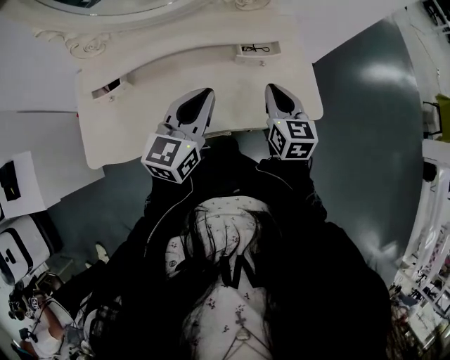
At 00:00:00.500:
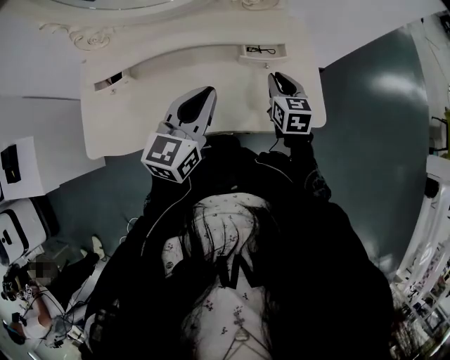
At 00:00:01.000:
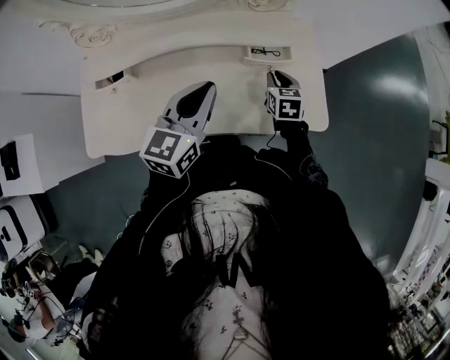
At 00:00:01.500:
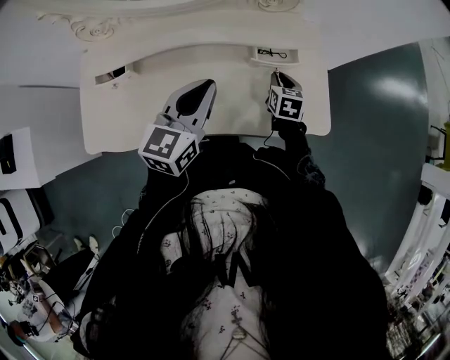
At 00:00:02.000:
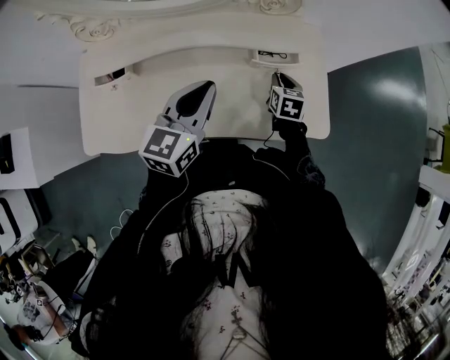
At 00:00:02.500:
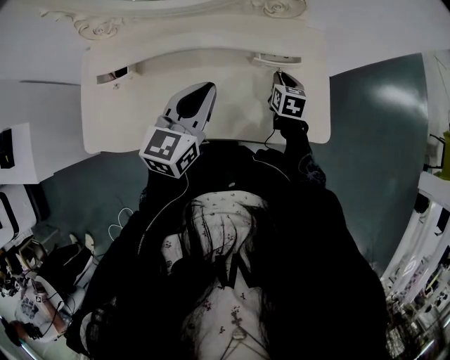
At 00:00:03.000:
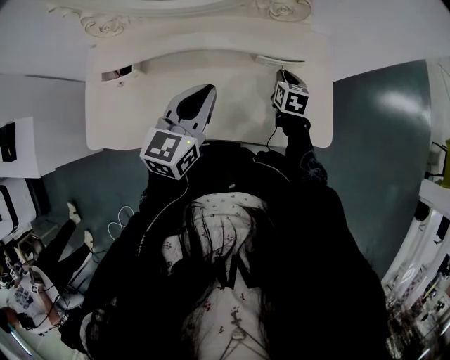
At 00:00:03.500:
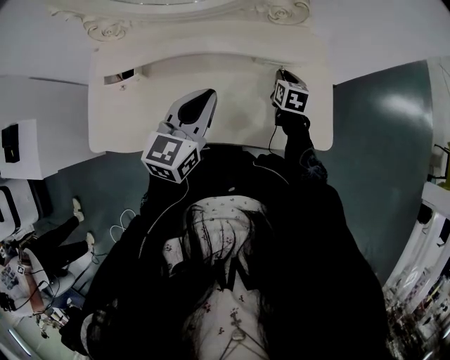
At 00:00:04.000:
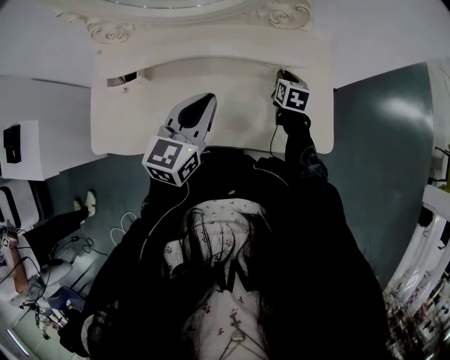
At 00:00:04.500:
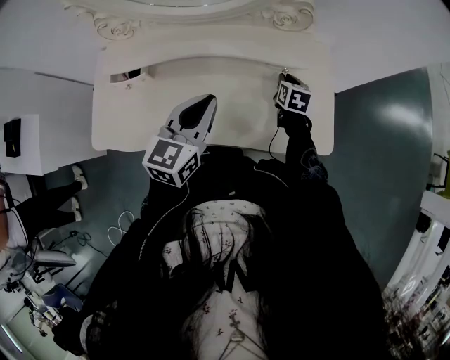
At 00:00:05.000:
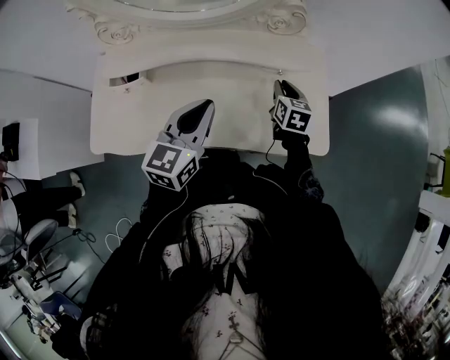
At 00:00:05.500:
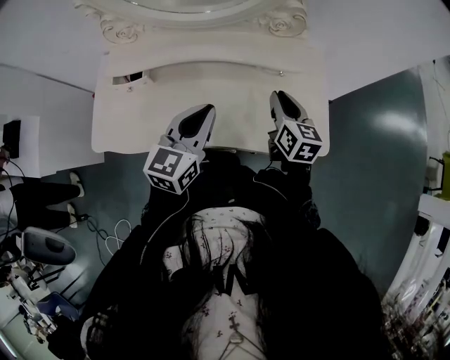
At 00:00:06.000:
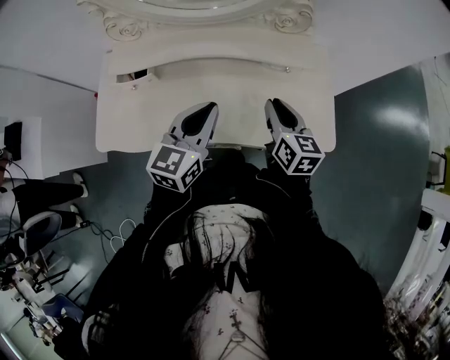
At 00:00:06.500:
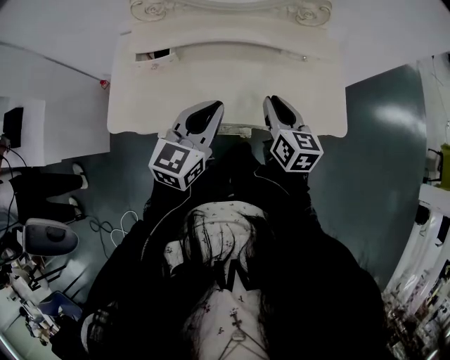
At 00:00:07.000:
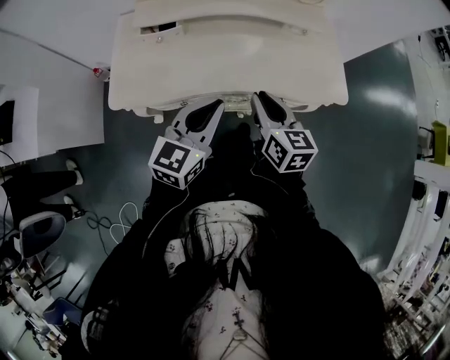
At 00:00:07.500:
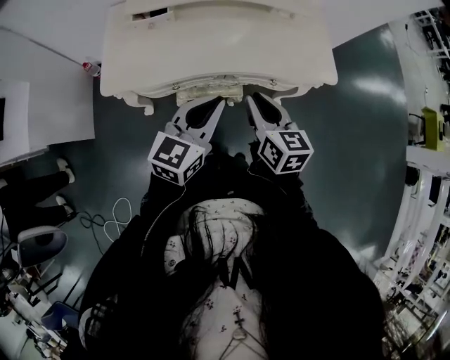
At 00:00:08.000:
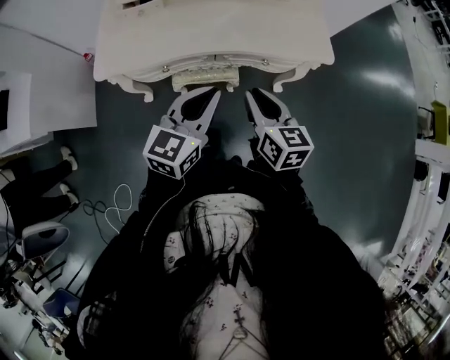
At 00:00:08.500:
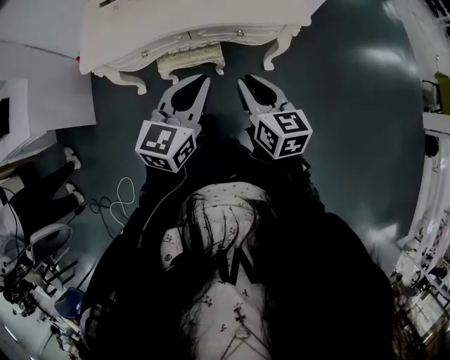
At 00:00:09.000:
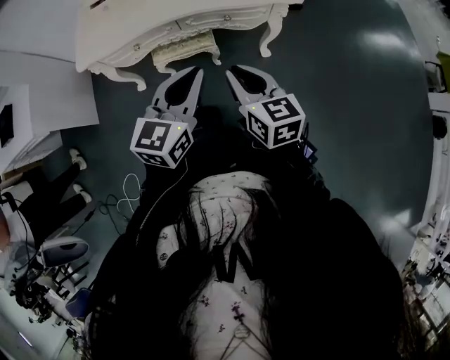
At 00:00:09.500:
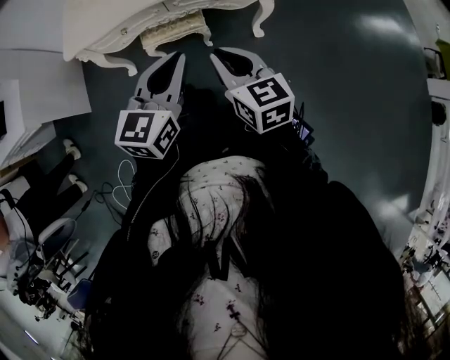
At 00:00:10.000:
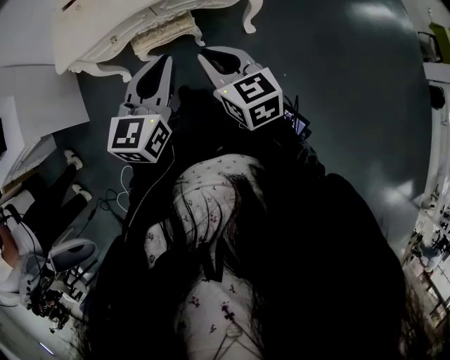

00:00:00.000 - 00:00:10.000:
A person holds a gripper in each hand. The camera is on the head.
00:00:00.000 - 00:00:02.000: The left gripper changes place by approximately 5 cm. The right gripper heads downward and forward, covering some 20 cm, and rotates about 20 degrees.
00:00:02.000 - 00:00:04.000: The right gripper is displaced forward by about 5 cm.
00:00:04.000 - 00:00:06.000: The right gripper moves upward, backward and to the left, some 25 cm, and changes its angle by roughly 30 degrees.
00:00:06.000 - 00:00:08.000: The grippers both shift backward by some 30 cm.
00:00:08.000 - 00:00:10.000: Both grippers move backward and to the right, roughly 15 cm.

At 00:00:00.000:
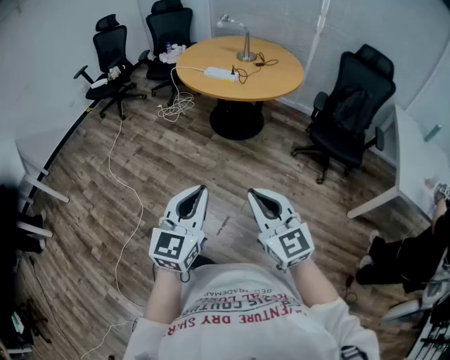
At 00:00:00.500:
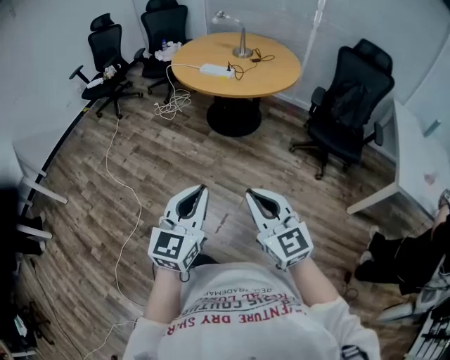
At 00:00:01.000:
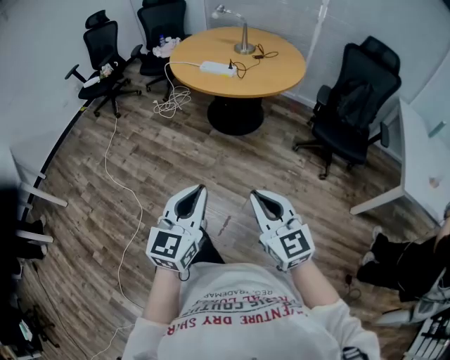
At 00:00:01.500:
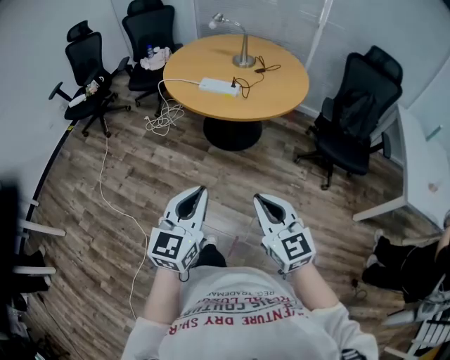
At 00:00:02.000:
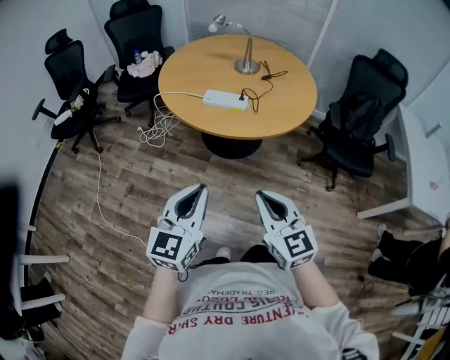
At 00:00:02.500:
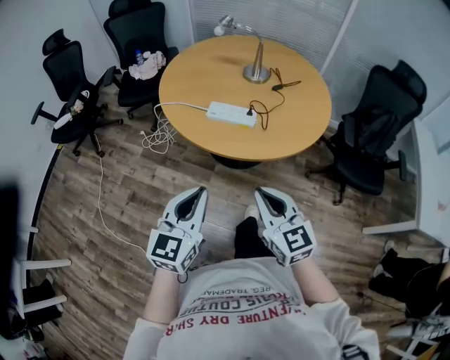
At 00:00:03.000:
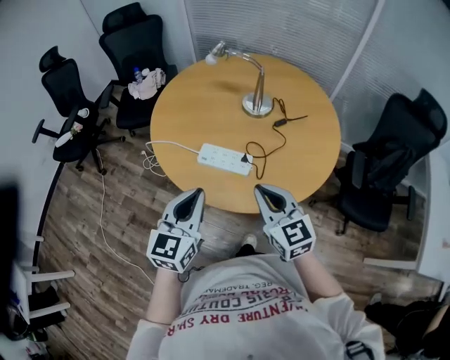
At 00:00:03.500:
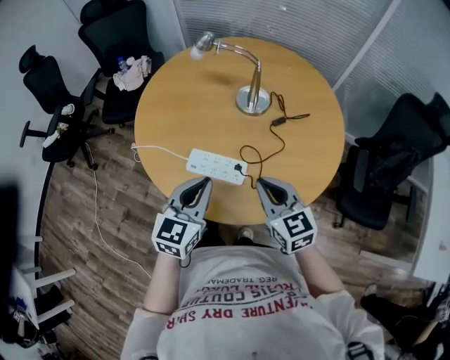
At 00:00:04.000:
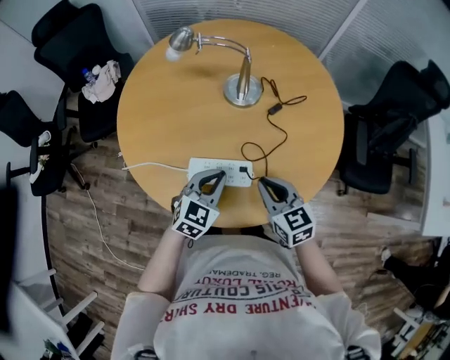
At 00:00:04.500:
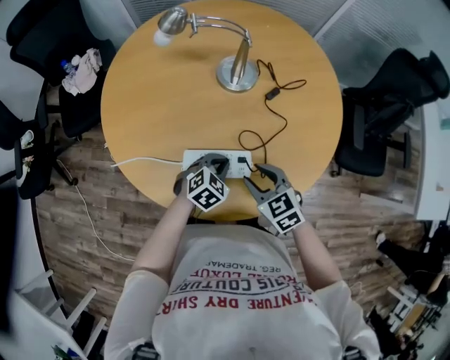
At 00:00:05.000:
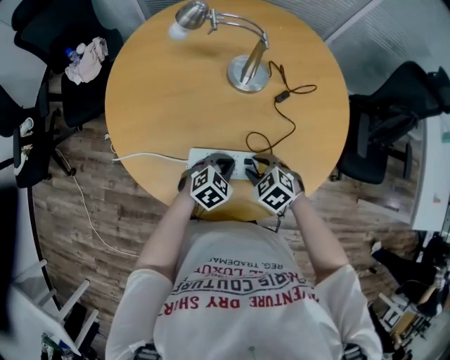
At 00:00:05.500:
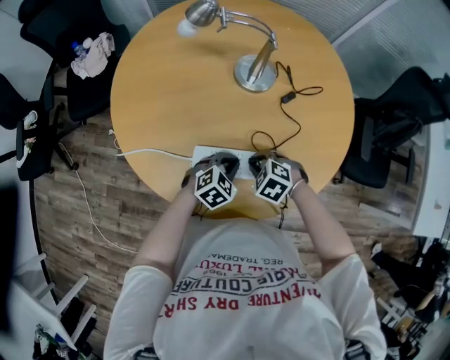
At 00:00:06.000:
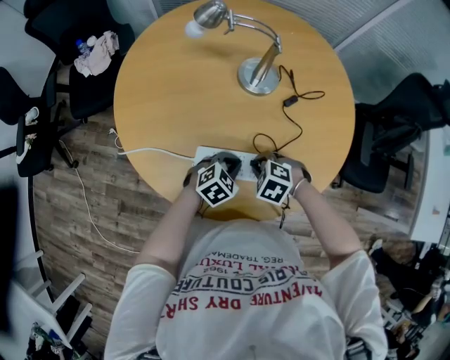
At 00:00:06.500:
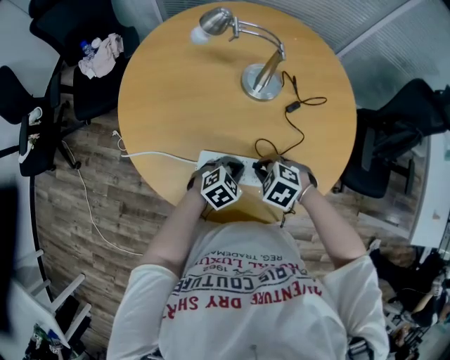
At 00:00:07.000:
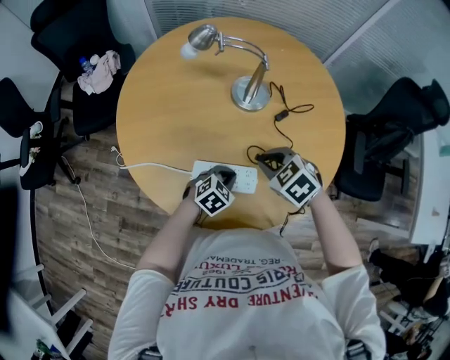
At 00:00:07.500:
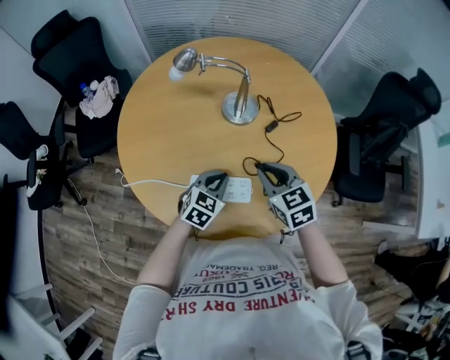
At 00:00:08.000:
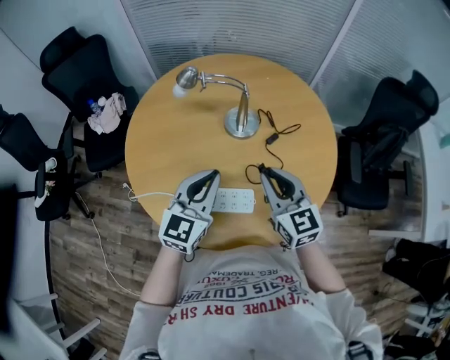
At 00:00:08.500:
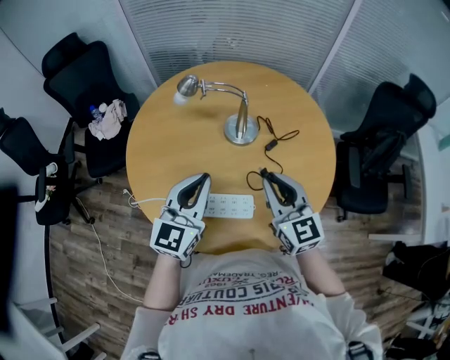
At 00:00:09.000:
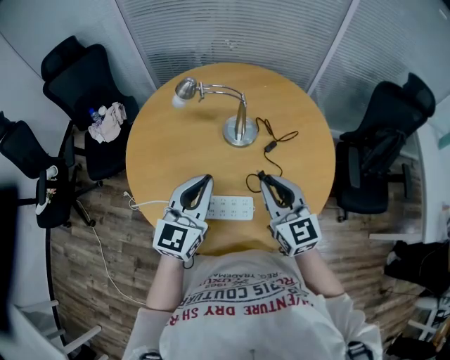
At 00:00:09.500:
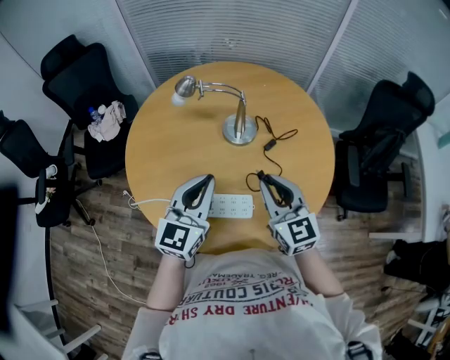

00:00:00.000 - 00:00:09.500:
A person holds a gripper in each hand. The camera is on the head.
00:00:00.000 - 00:00:02.000: The pair of grippers is taken forward, approximately 40 cm. The right gripper changes its angle by approximately 20 degrees.
00:00:02.000 - 00:00:04.000: Both grippers are carried forward, some 50 cm. The right gripper turns by some 20 degrees. The left gripper swivels roughly 40 degrees.
00:00:04.000 - 00:00:05.500: The grippers both shift downward by roughly 15 cm. The left gripper rotates roughly 20 degrees, while the right gripper tips its fingers downward by roughly 40 degrees.
00:00:05.500 - 00:00:07.500: The right gripper goes some 15 cm upward, and tilts its fingers about 40 degrees upward. Meanwhile the left gripper heads upward, covering approximately 10 cm.
00:00:07.500 - 00:00:09.500: The left gripper goes some 20 cm upward, and tips its fingers upward by some 30 degrees. Meanwhile the right gripper moves upward, some 10 cm, and turns by approximately 30 degrees.

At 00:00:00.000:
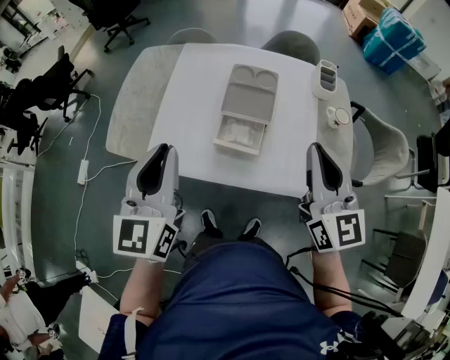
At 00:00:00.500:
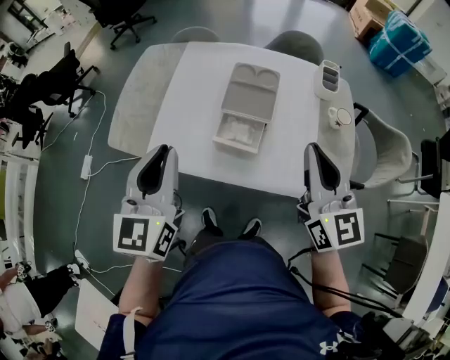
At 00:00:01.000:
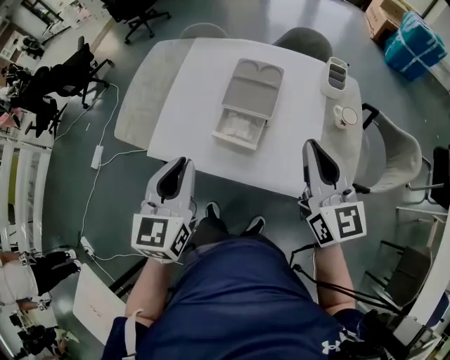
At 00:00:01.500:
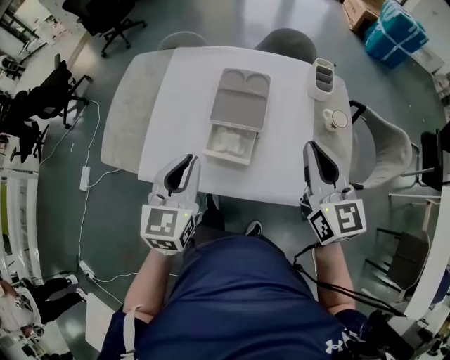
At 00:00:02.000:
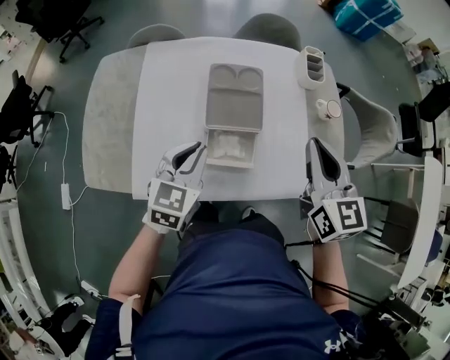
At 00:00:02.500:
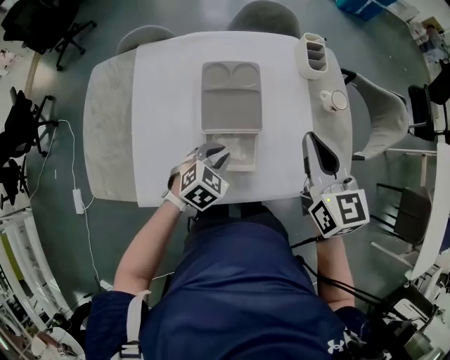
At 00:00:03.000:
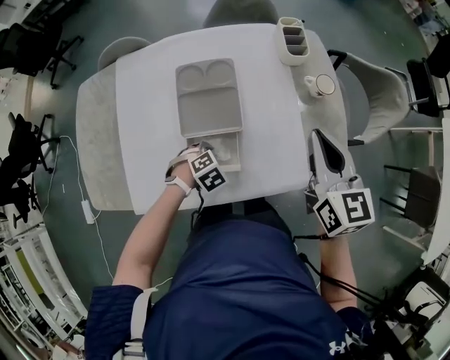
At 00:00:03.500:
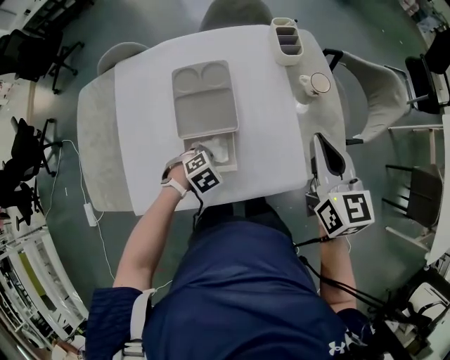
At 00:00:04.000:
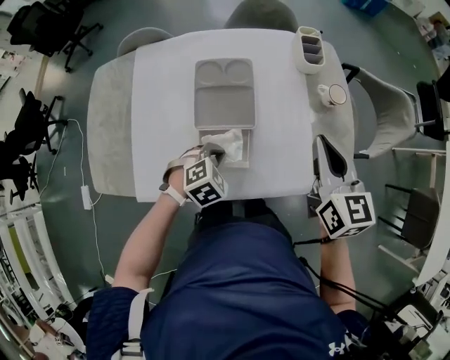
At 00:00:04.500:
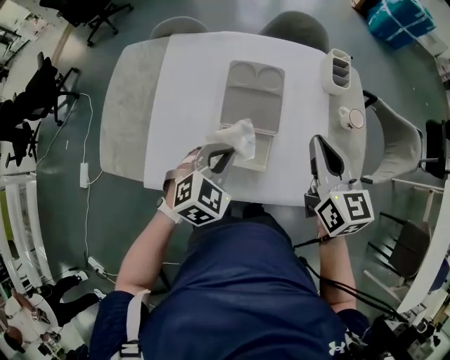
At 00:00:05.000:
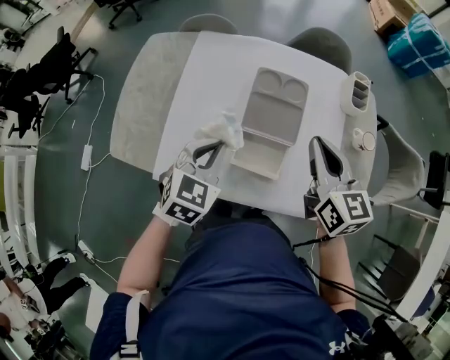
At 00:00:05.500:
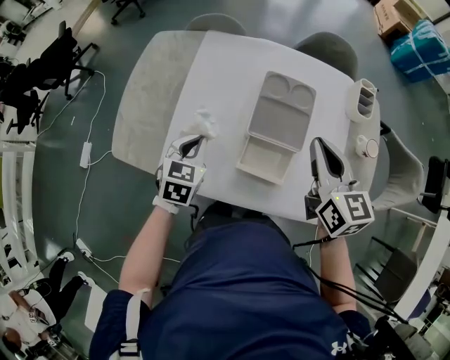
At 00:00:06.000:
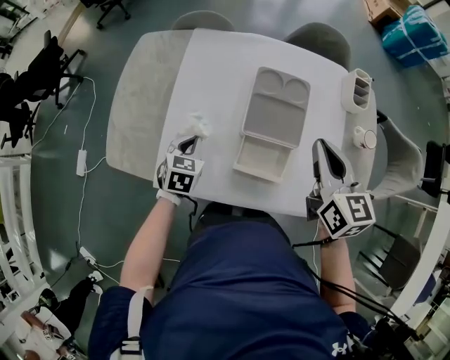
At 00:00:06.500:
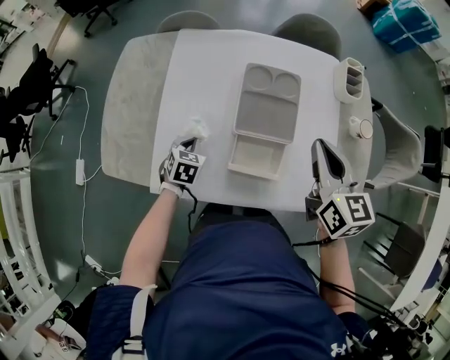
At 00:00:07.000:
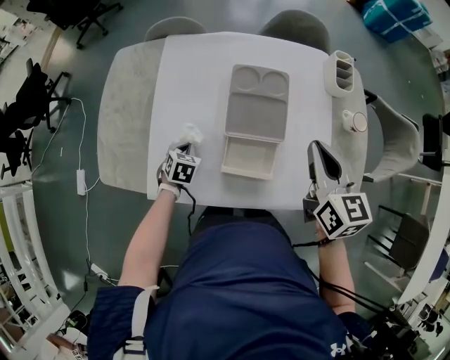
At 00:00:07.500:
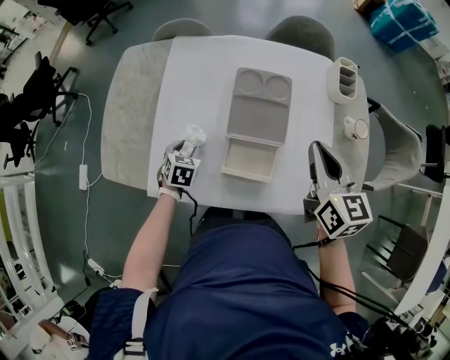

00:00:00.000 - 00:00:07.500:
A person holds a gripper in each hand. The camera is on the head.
00:00:00.000 - 00:00:02.000: The right gripper shifts by about 10 cm. Meanwhile the left gripper heads downward, covering some 15 cm, and swivels about 40 degrees.
00:00:02.000 - 00:00:04.000: The right gripper changes place by about 10 cm. The left gripper shifts roughly 15 cm downward, and points its fingers some 40 degrees further downward.
00:00:04.000 - 00:00:05.500: The left gripper changes place by roughly 25 cm, and twists approximately 50 degrees counterclockwise, seen from behind, while the right gripper shifts by approximately 20 cm.
00:00:05.500 - 00:00:07.500: The right gripper travels to the right by roughly 5 cm. Meanwhile the left gripper goes approximately 15 cm downward, and opens.
